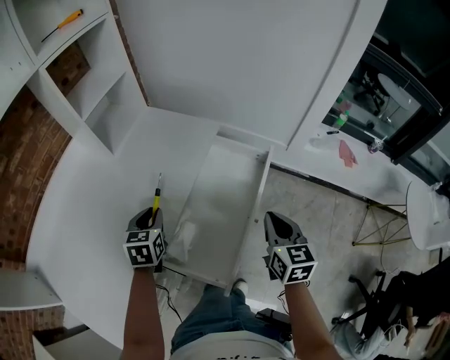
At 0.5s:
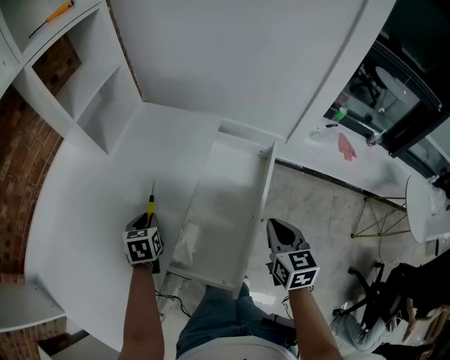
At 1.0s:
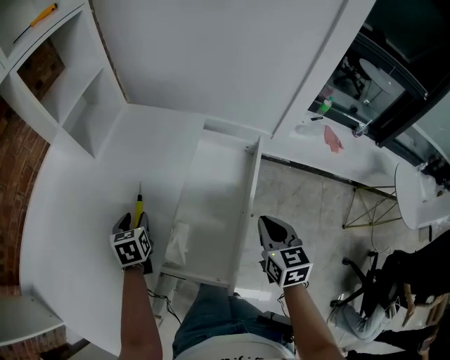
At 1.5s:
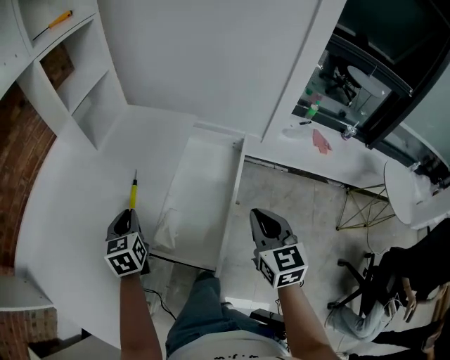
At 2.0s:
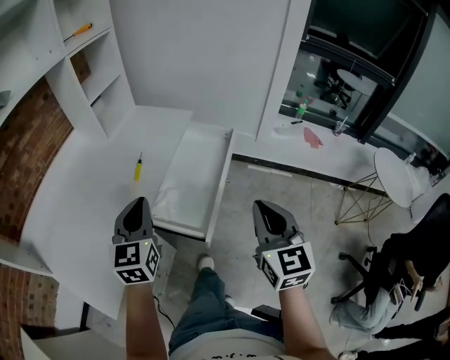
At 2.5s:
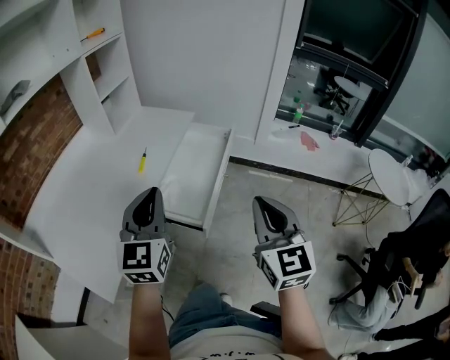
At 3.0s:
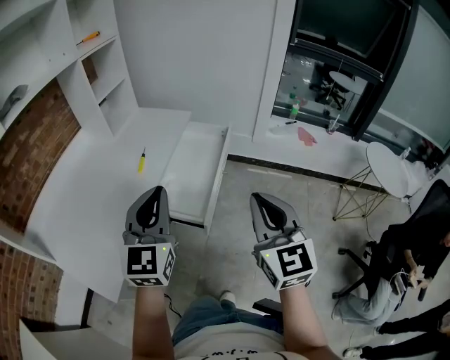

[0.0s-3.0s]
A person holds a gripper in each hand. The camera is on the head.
0.0s to 1.5s: The two grippers go some 5 cm backward. The left gripper moves approximately 5 cm downward and comes back, and opens, then closes once more.
1.5s to 3.0s: The right gripper goes approximately 30 cm backward and upward, and rotates roughly 20 degrees. Meanwhile the left gripper heads backward, upward and to the right, covering approximately 35 cm, and tips its fingers upward by about 30 degrees.

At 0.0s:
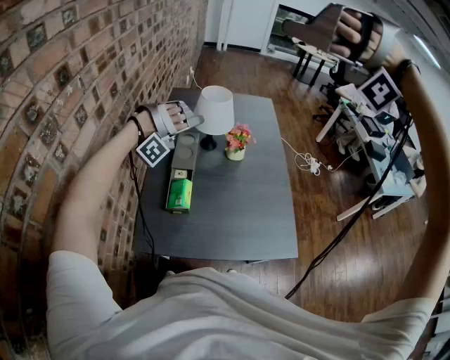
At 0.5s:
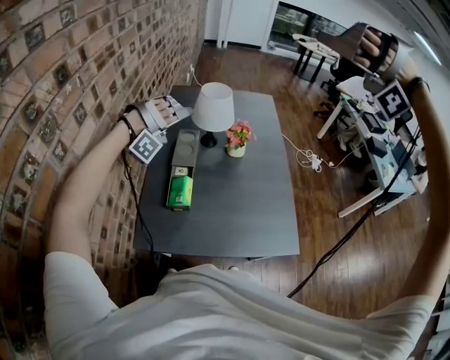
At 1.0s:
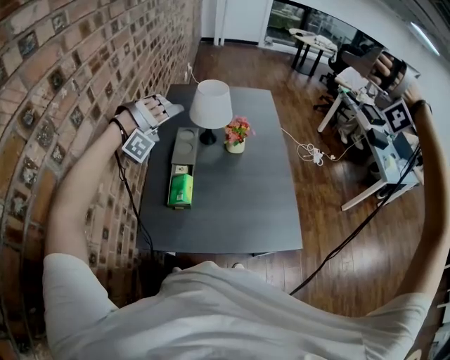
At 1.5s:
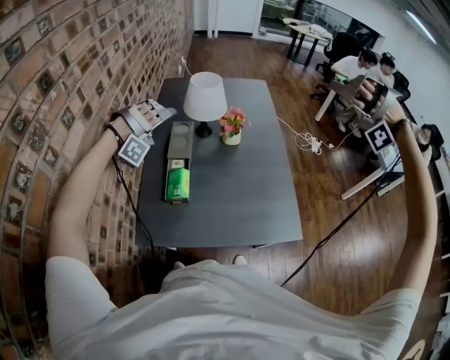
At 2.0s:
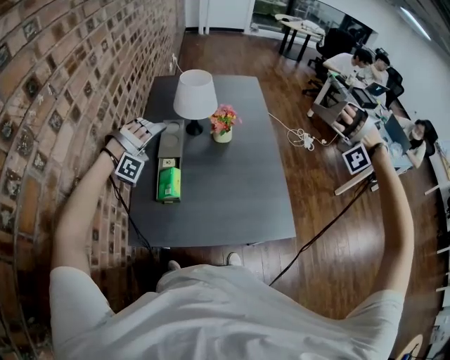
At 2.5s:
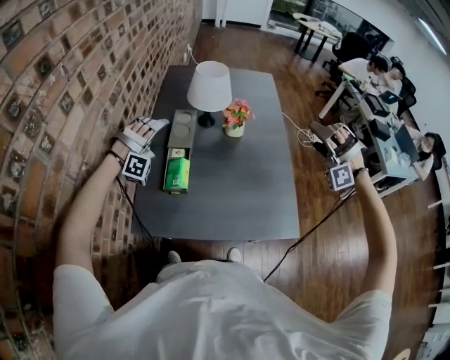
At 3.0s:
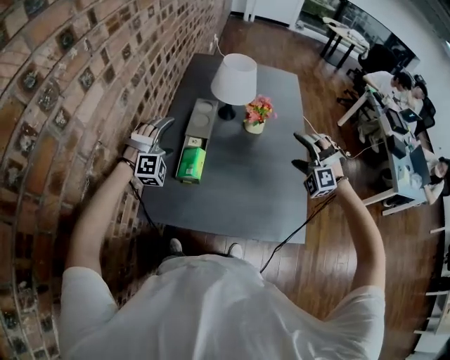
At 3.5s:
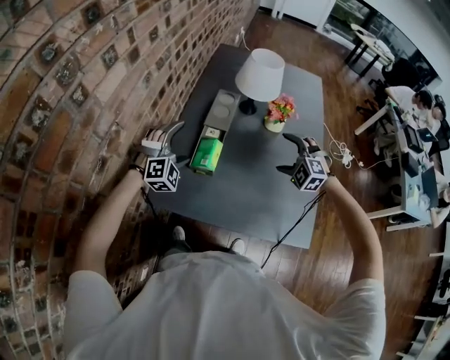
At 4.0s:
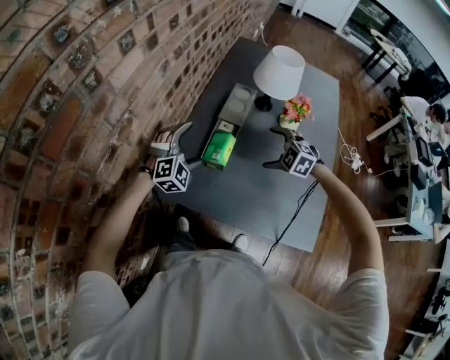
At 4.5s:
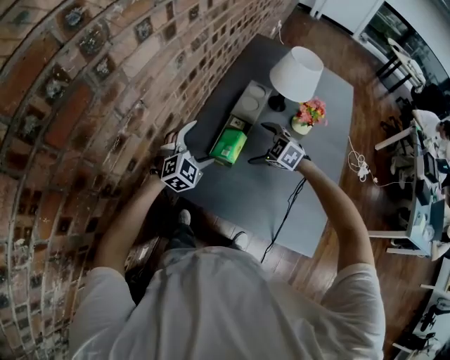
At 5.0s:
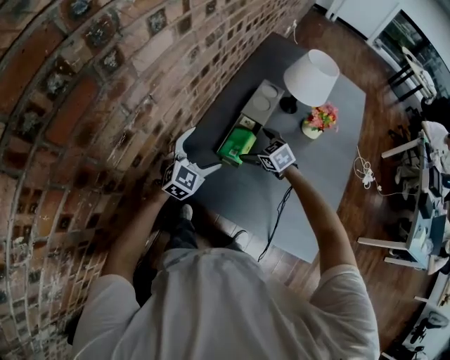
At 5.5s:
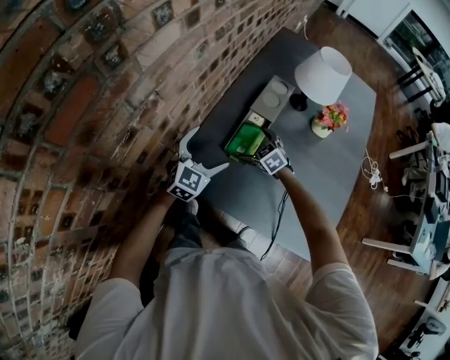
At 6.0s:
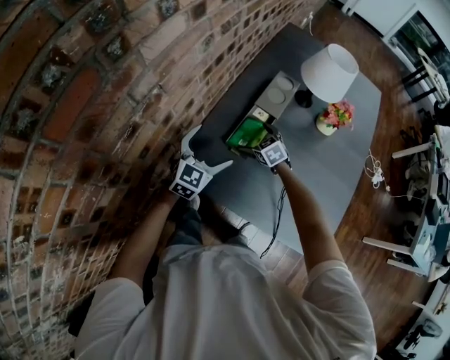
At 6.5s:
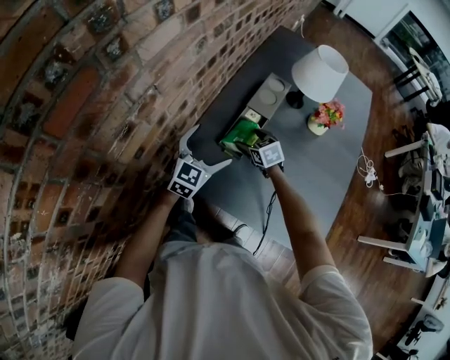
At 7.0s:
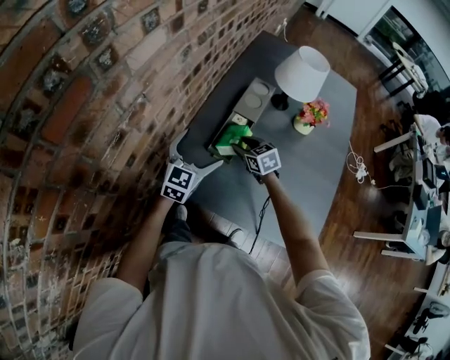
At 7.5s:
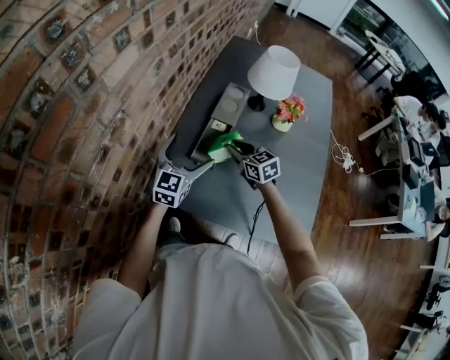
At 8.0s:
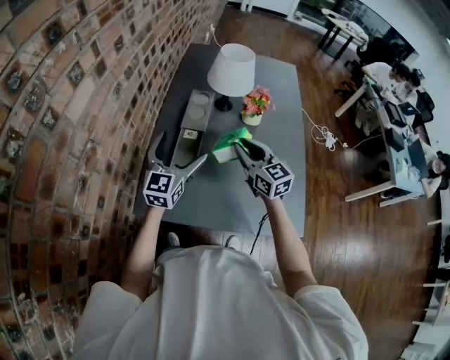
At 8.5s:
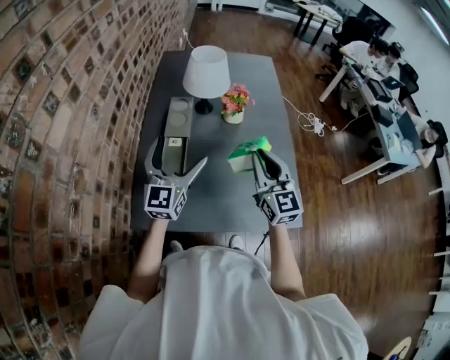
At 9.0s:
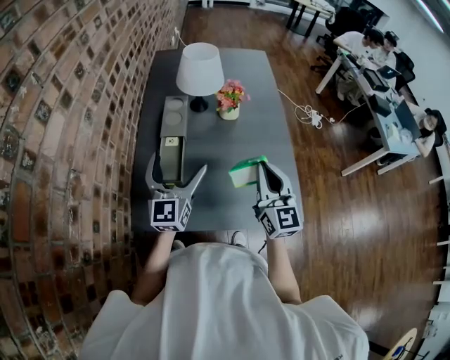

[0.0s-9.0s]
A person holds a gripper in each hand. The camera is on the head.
0.0s to 2.0s: The left gripper travels downward by about 10 cm, and rotates roughly 30 degrees.
2.0s to 4.5s: The left gripper shifts by roughly 15 cm, and rotates around the line of its fingers by about 80 degrees, counterclockwise from behind.
4.5s to 7.0s: The left gripper swivels approximately 40 degrees.
7.0s to 9.0s: The left gripper ends up about 15 cm from where it was, and swivels roughly 20 degrees.

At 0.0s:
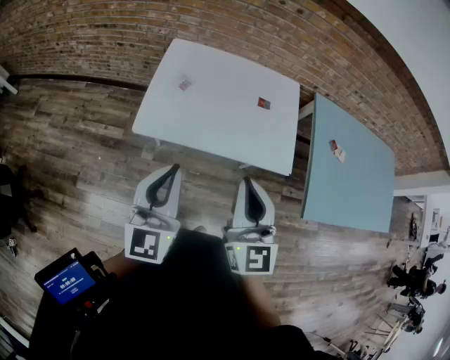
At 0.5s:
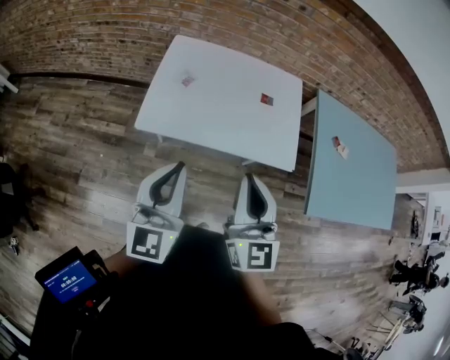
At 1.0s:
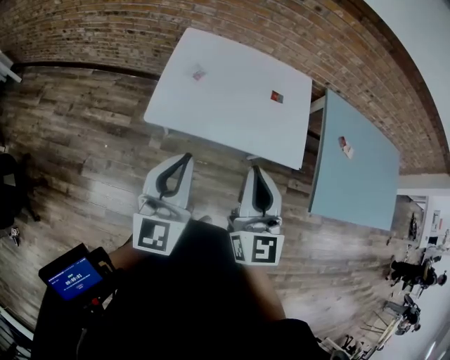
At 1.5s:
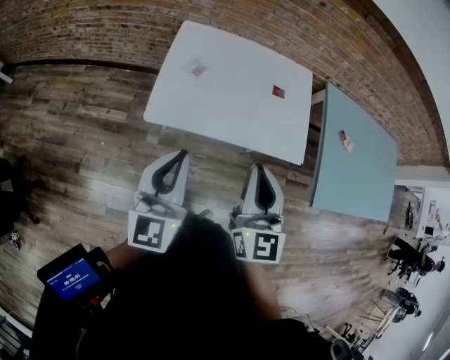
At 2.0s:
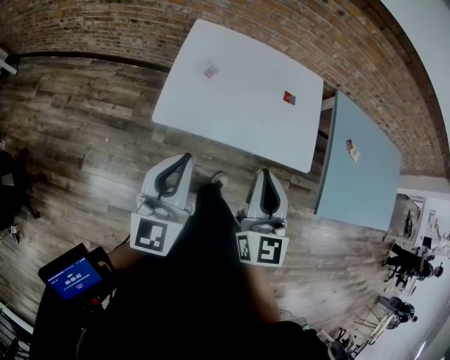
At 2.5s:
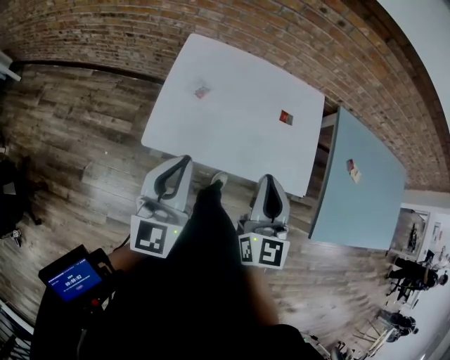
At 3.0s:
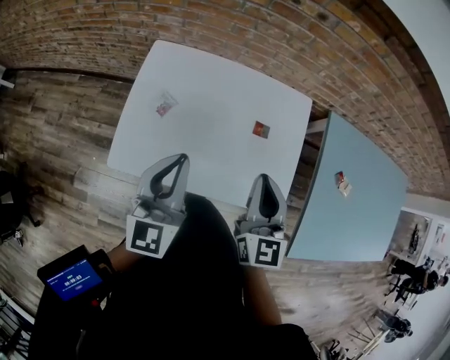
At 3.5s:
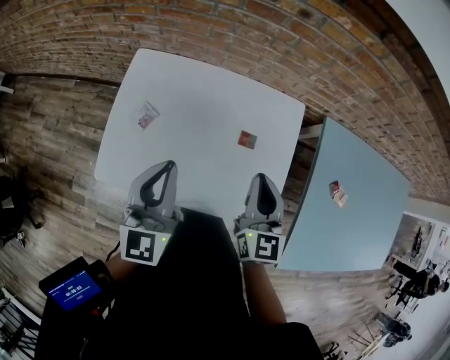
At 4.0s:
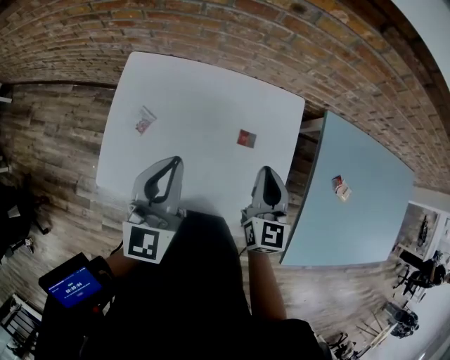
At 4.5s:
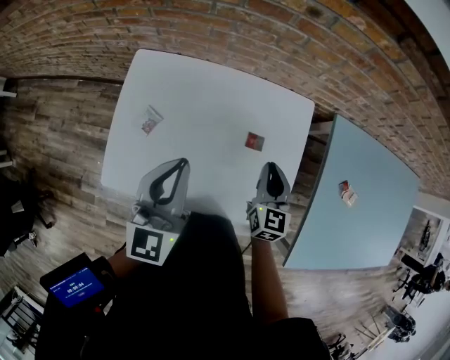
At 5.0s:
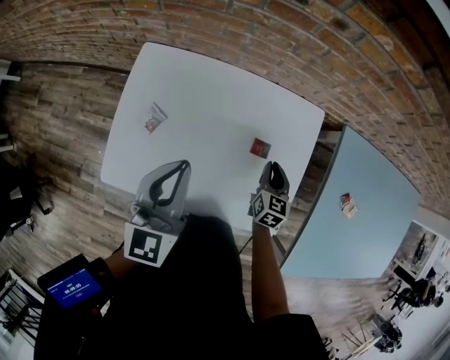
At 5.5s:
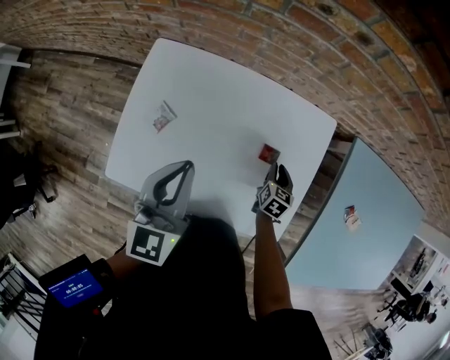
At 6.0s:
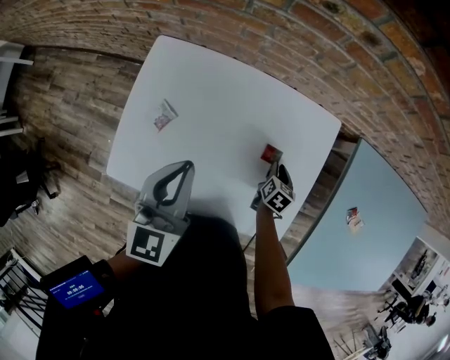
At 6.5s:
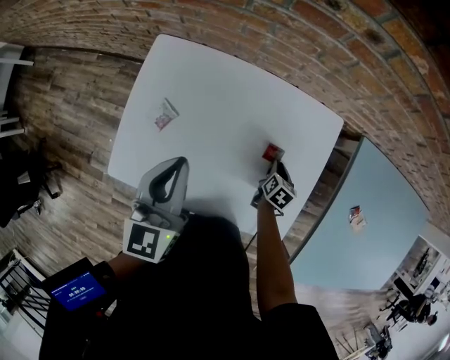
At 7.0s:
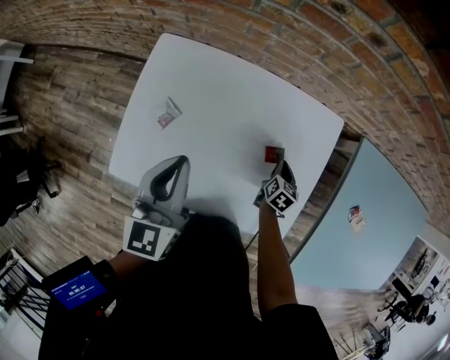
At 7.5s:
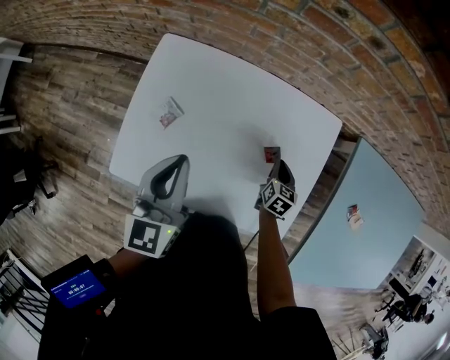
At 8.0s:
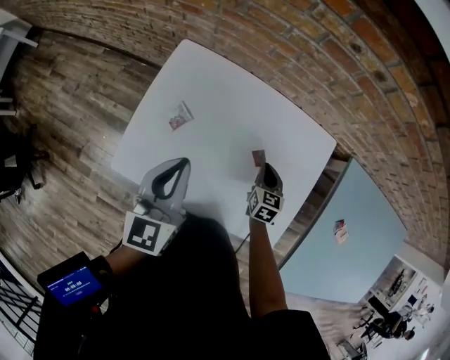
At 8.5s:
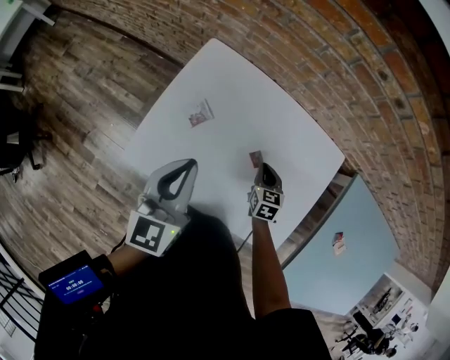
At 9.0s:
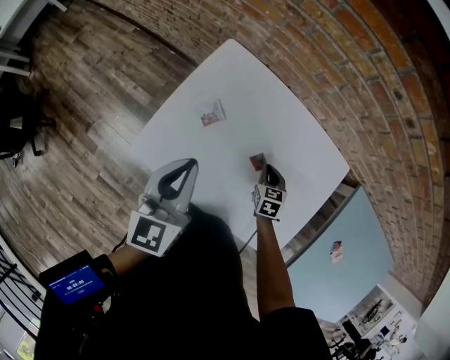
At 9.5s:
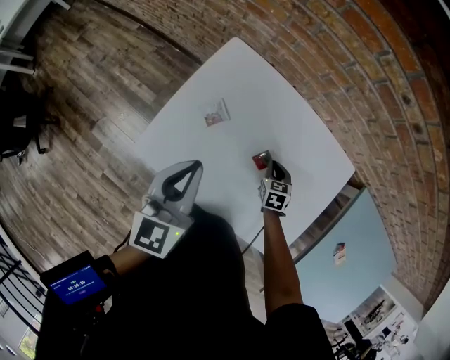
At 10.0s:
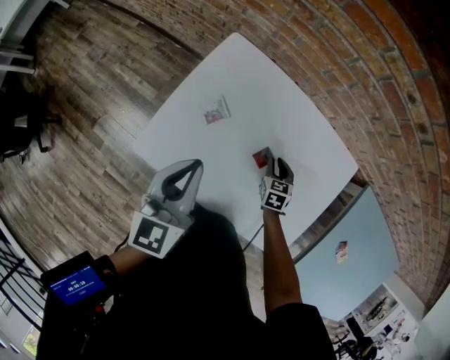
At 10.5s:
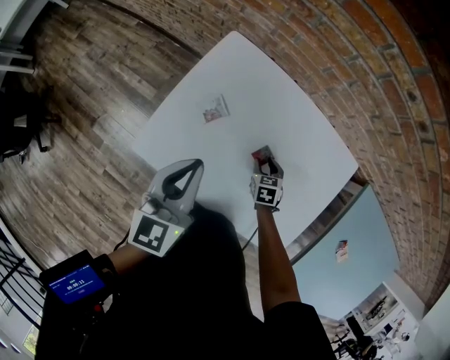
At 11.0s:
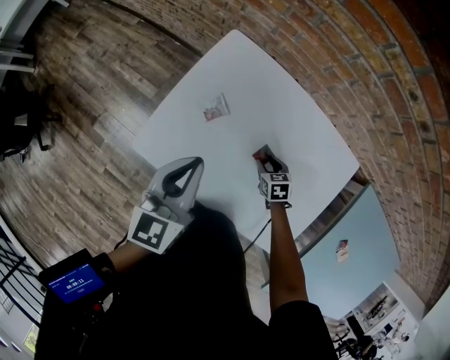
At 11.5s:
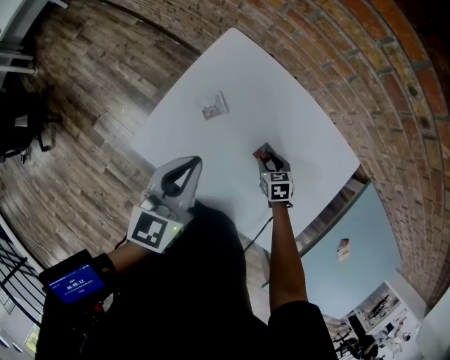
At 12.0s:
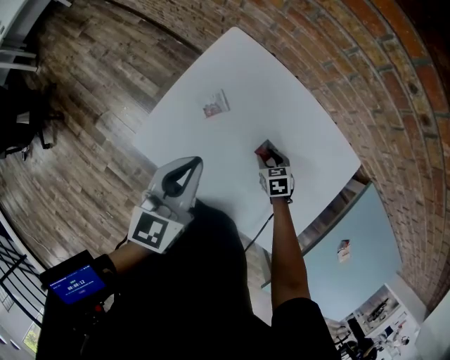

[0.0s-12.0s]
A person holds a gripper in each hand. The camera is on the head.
0.0s to 2.0s: Both grippers move to the left, approximately 5 cm.
2.0s to 4.0s: The grippers both shift forward and to the right by some 35 cm.
4.0s to 6.0s: The left gripper shifts by some 5 cm. The right gripper heads downward, covering some 30 cm, and angles its fingers downward, by some 40 degrees.
6.0s to 8.0s: The left gripper goes about 5 cm to the left; the right gripper moves to the left and upward, about 10 cm, and rotates about 30 degrees.
8.0s to 10.0s: The right gripper goes some 10 cm to the left and downward, and swivels about 20 degrees, while the left gripper is displaced to the left by some 5 cm.
10.0s to 12.0s: The right gripper shifts by approximately 5 cm, swivels some 20 degrees, and opens its fingers.

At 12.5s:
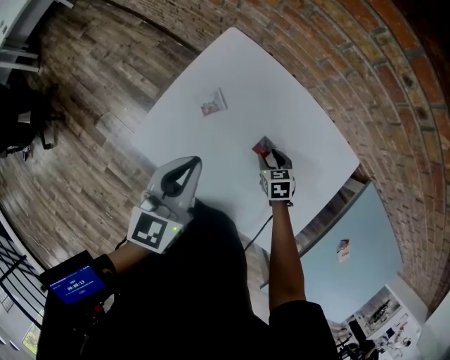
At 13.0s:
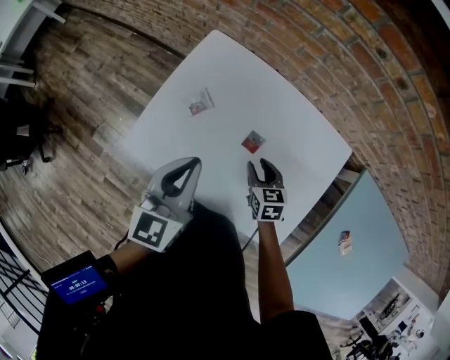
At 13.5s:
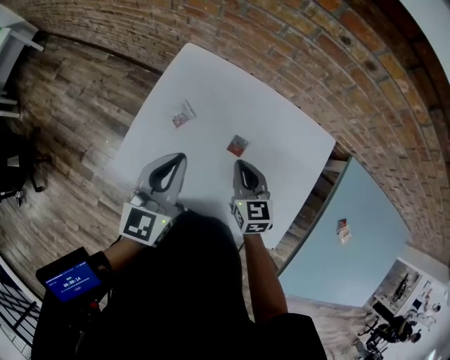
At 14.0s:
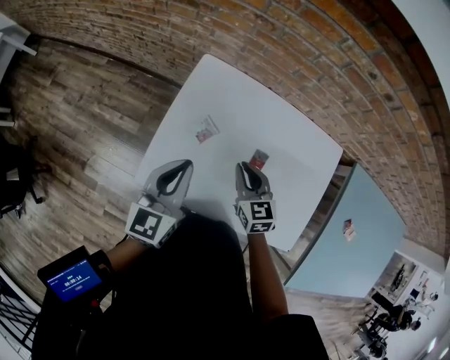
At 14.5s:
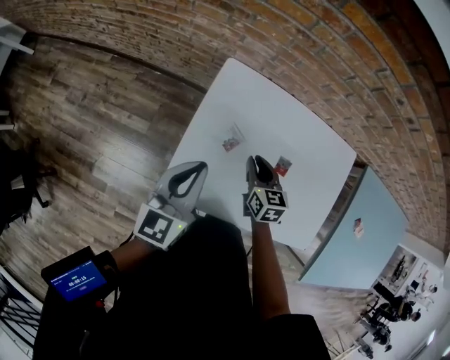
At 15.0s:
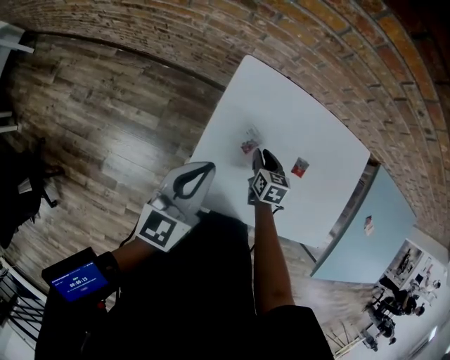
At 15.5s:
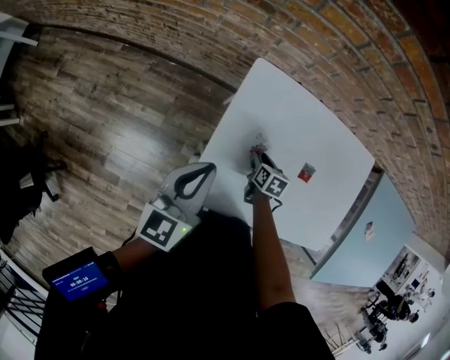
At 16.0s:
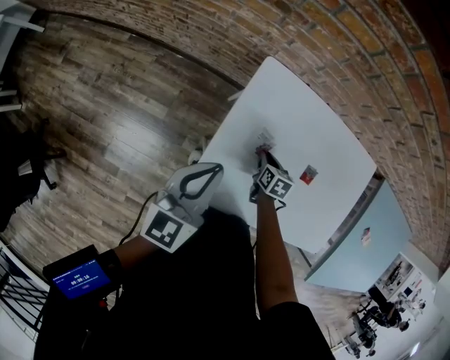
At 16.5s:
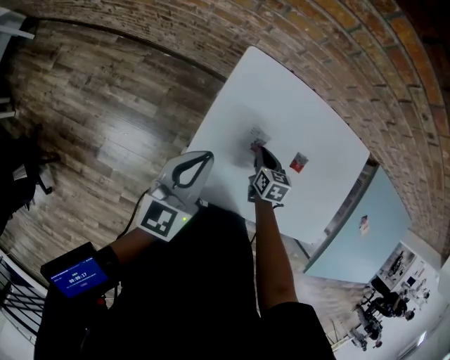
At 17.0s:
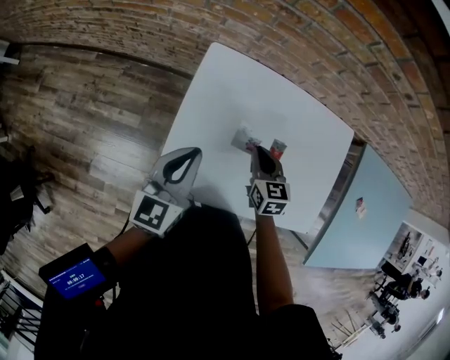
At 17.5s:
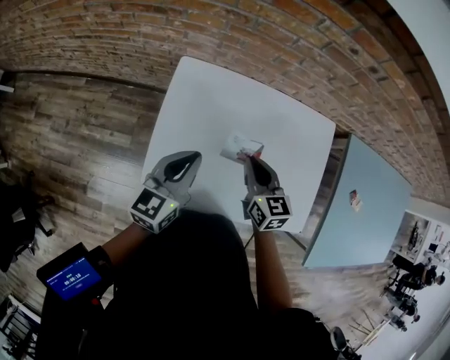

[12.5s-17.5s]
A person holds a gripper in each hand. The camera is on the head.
12.5s to 15.0s: The left gripper shifts by some 20 cm, and changes its angle by some 20 degrees. Meanwhile the right gripper reaches about 15 cm upward, then returns, swivels roughly 40 degrees, and closes, then reopens.
15.0s to 17.5s: The right gripper travels upward and to the right by roughly 20 cm, swivels approximately 20 degrees, and closes; the left gripper travels to the right by approximately 15 cm.
